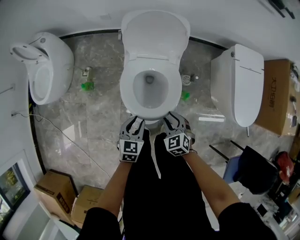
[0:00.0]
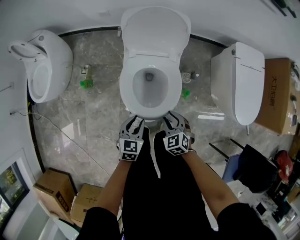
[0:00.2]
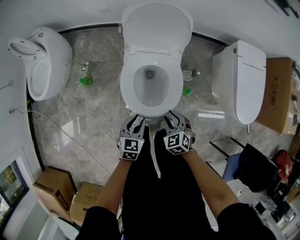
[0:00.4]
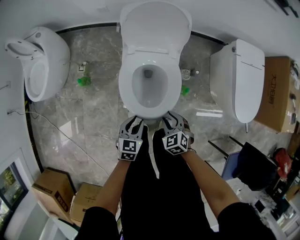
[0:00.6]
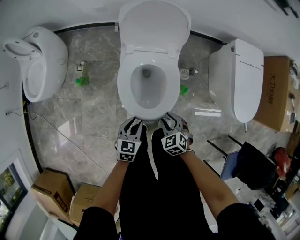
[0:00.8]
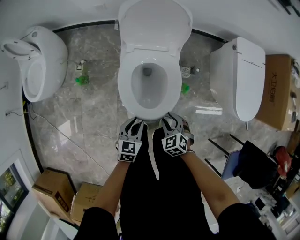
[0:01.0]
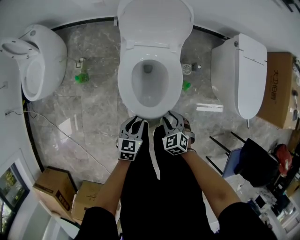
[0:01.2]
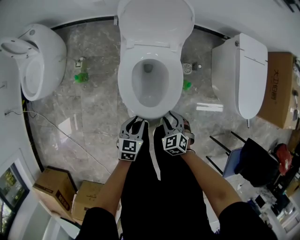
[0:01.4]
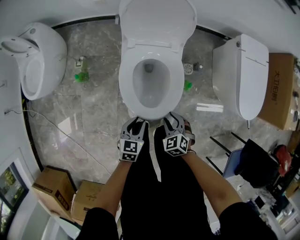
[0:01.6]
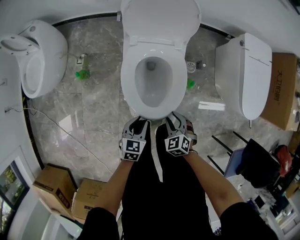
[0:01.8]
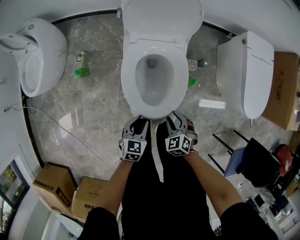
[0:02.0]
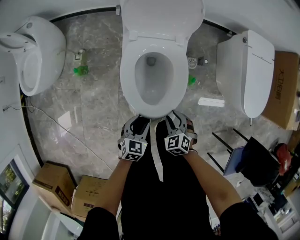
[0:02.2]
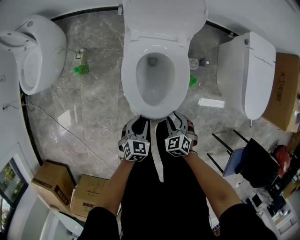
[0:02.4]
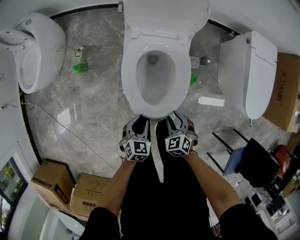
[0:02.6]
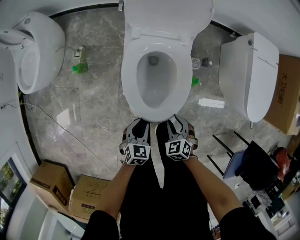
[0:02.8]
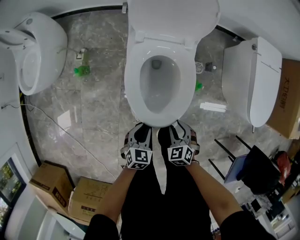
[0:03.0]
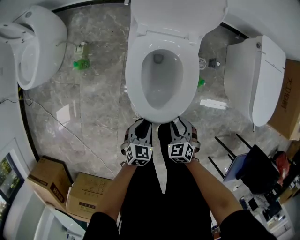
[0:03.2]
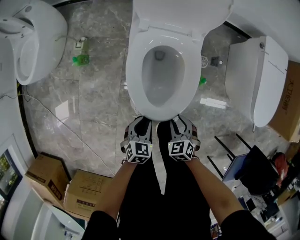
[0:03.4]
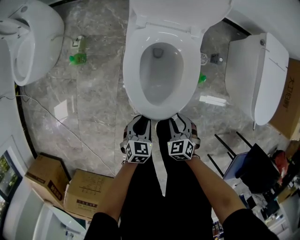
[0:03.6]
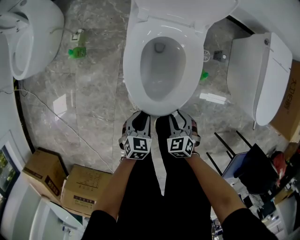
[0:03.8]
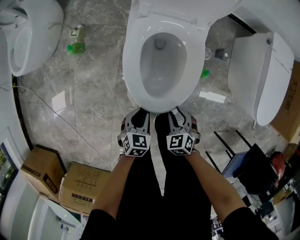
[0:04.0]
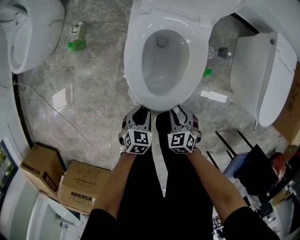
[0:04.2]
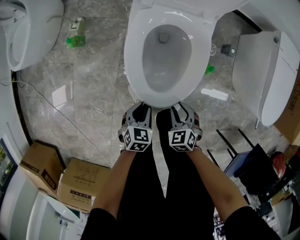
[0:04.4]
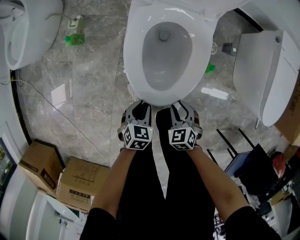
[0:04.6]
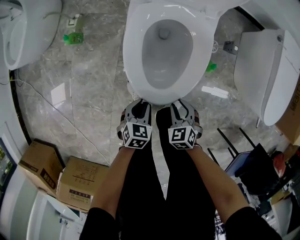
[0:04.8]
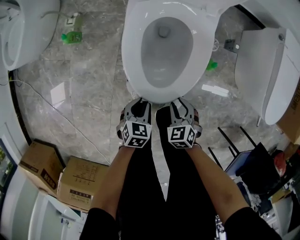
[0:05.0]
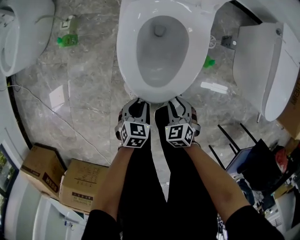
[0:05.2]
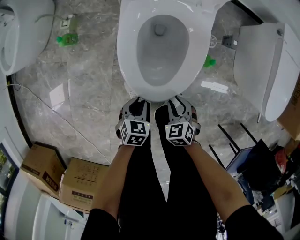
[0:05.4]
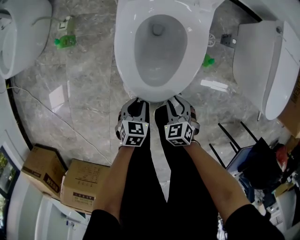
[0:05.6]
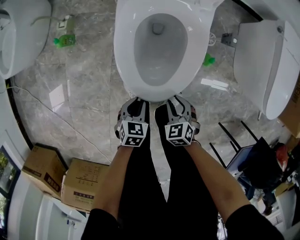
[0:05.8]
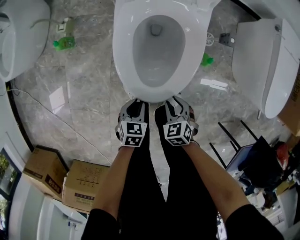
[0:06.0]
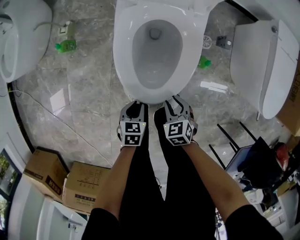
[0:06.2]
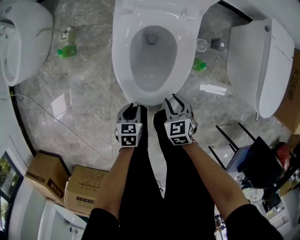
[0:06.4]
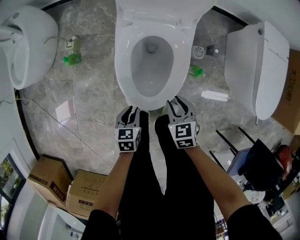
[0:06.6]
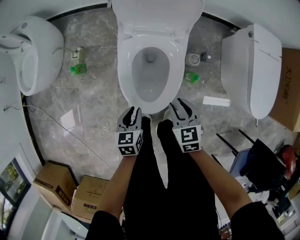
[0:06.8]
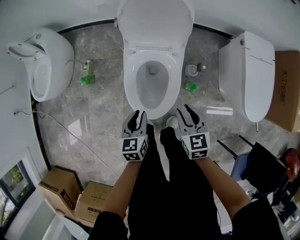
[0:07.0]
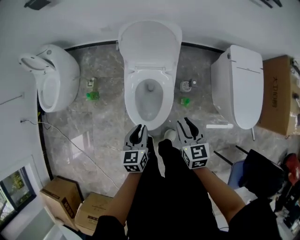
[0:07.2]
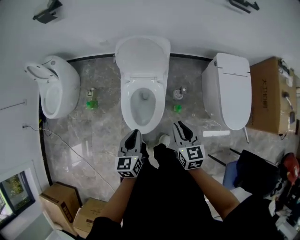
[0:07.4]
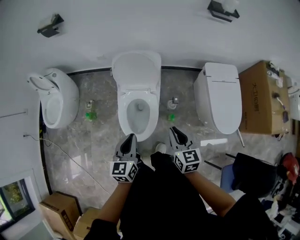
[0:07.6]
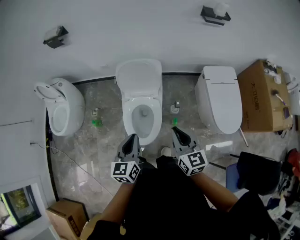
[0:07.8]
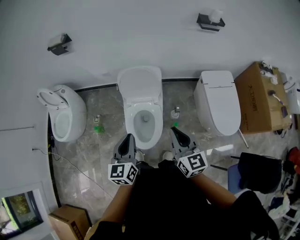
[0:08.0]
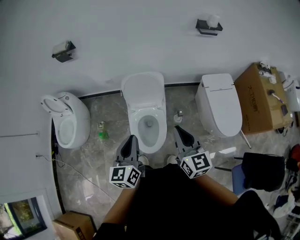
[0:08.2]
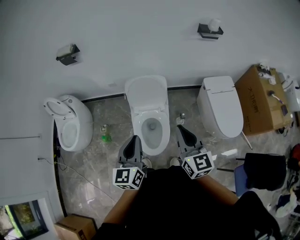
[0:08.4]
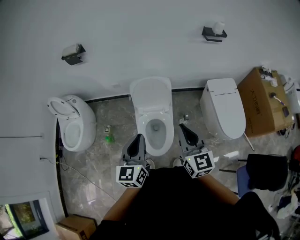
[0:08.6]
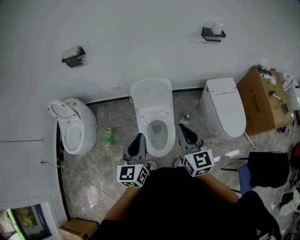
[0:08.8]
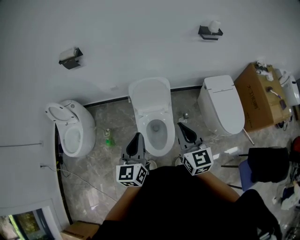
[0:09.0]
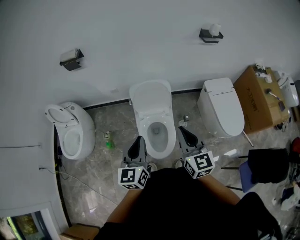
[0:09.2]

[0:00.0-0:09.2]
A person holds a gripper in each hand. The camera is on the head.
0:00.0 to 0:01.6: The two grippers go some 10 cm downward and backward.
0:01.6 to 0:03.0: The grippers both shift downward by roughly 5 cm.
0:03.0 to 0:04.6: The grippers both shift downward by roughly 10 cm.
0:04.6 to 0:06.2: The grippers make only small movements.
0:06.2 to 0:07.6: Both grippers move upward, about 50 cm. The left gripper angles its fingers upward, by approximately 40 degrees. The right gripper tilts its fingers roughly 30 degrees upward.
0:07.6 to 0:09.2: The two grippers go about 25 cm upward and to the left. The right gripper changes its angle by approximately 20 degrees.

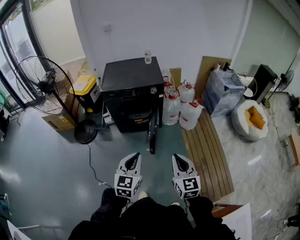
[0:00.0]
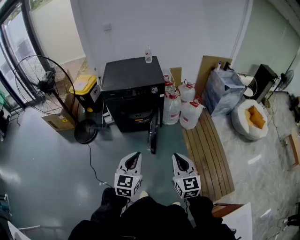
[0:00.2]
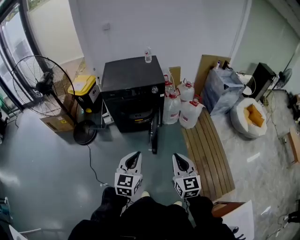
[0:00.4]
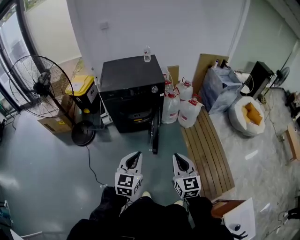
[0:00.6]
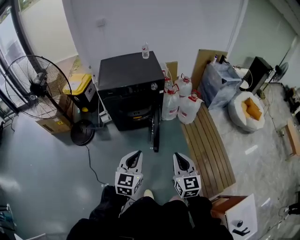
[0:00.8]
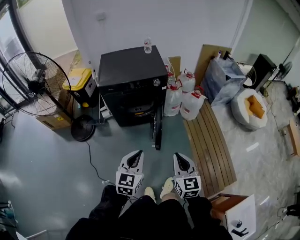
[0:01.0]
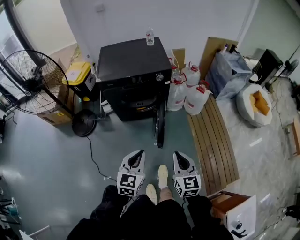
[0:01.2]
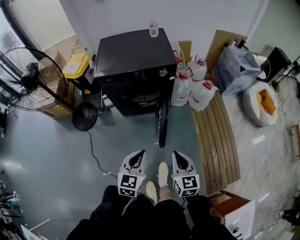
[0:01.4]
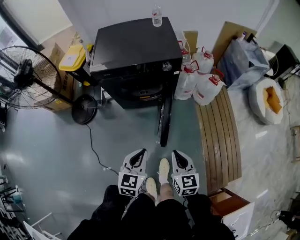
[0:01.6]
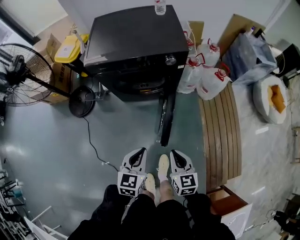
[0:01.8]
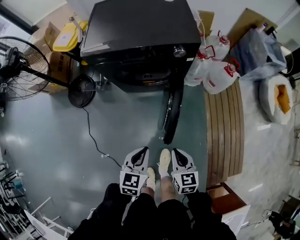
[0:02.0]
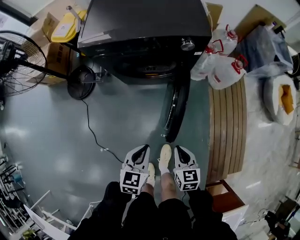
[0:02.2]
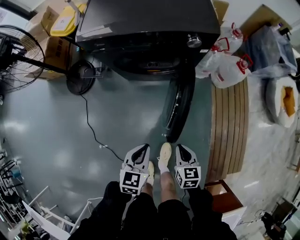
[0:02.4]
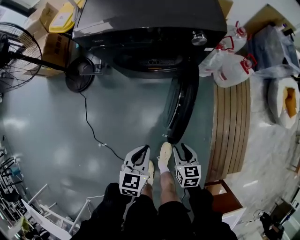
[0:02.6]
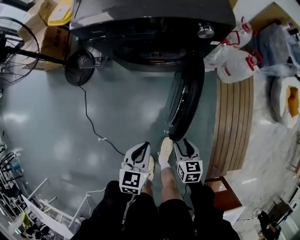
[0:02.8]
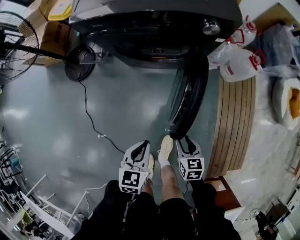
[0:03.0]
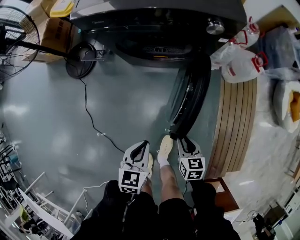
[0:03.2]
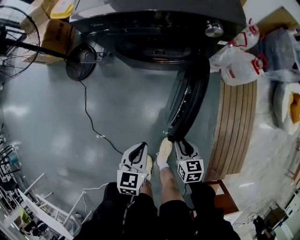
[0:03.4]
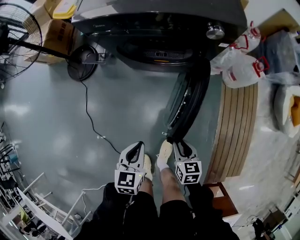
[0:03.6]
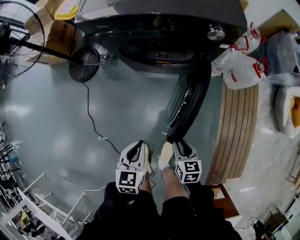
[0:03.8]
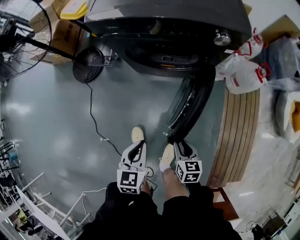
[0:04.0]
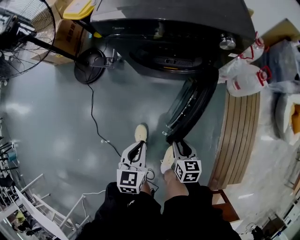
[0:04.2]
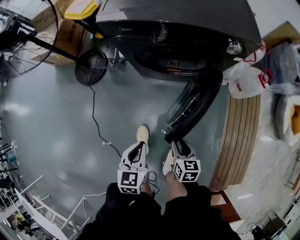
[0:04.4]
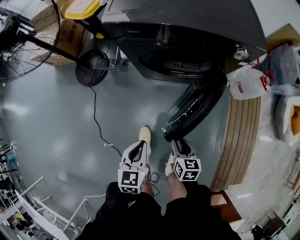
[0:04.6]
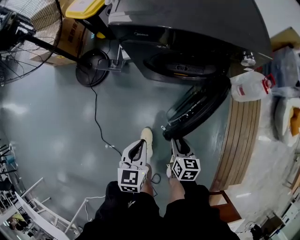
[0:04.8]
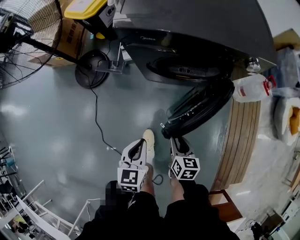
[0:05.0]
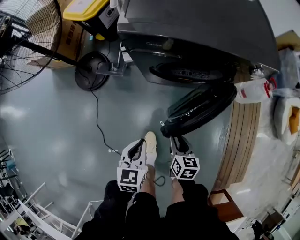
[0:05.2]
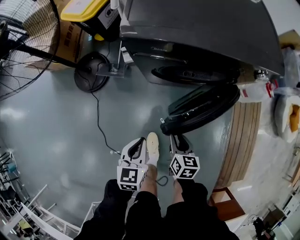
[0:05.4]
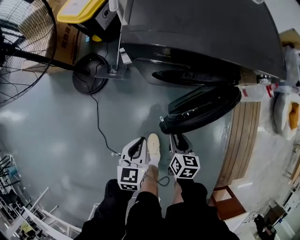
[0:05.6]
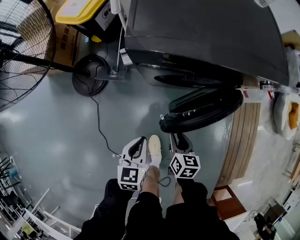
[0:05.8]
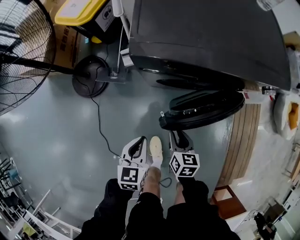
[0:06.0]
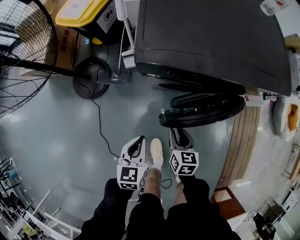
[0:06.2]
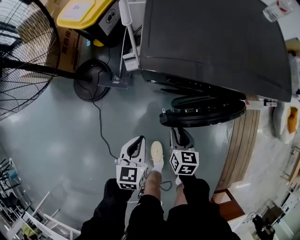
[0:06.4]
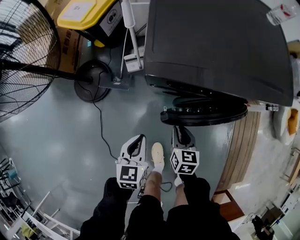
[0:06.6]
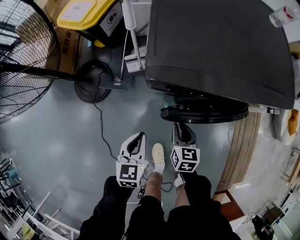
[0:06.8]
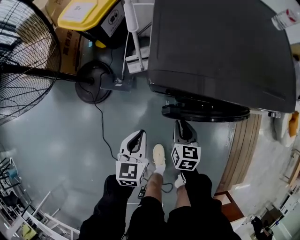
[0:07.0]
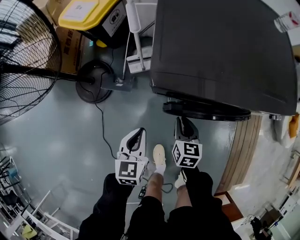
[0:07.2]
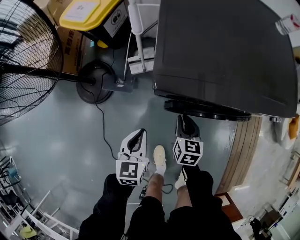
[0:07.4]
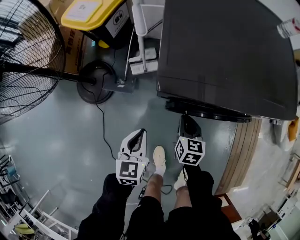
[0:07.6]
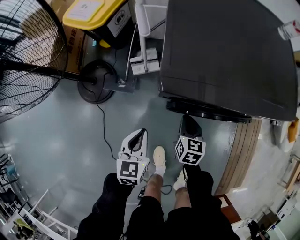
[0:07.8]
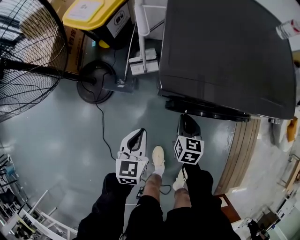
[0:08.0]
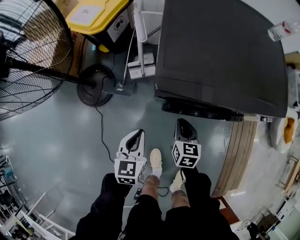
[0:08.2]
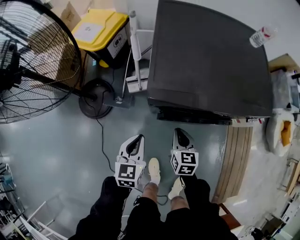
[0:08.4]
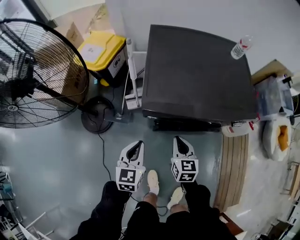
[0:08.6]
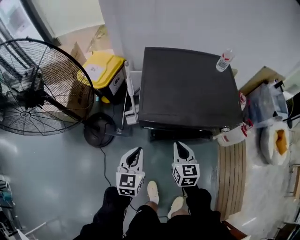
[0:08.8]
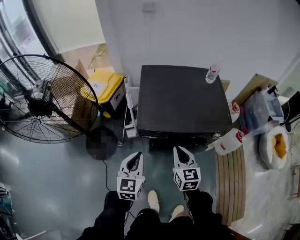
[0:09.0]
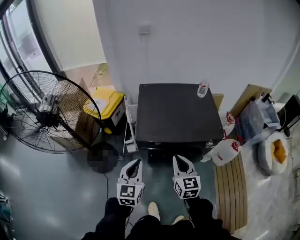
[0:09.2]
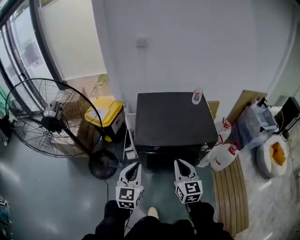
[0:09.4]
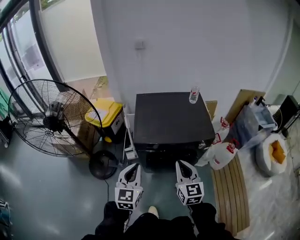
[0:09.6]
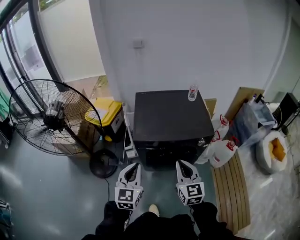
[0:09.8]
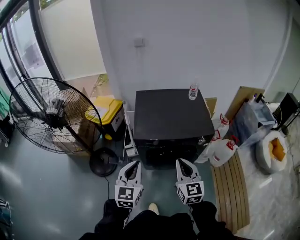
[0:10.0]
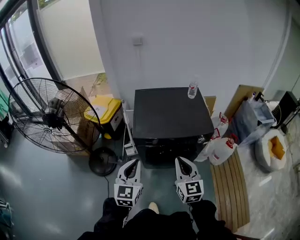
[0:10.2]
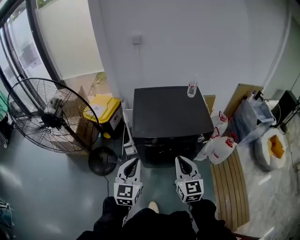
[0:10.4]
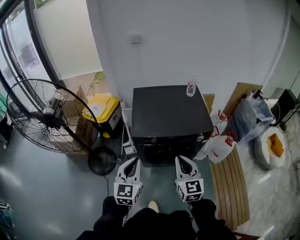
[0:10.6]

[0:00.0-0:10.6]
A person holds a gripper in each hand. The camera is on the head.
0:00.0 to 0:01.6: The left gripper moves forward and downward, some 30 cm; the right gripper heads forward, downward and to the left, covering about 30 cm.
0:01.6 to 0:03.0: The two grippers go roughly 30 cm downward. The right gripper turns by approximately 30 degrees, and opens up.
0:03.0 to 0:04.6: Both grippers travel together to the left and forward, approximately 15 cm.
0:04.6 to 0:06.0: Both grippers travel together forward and to the left, approximately 25 cm.
0:06.0 to 0:07.6: The right gripper heads forward, covering approximately 15 cm, and closes its fingers. The left gripper moves forward and to the left, about 15 cm.
0:07.6 to 0:09.0: The grippers both shift upward by about 40 cm. The left gripper swivels approximately 20 degrees. The right gripper changes its angle by about 30 degrees.
0:09.0 to 0:10.6: The left gripper moves upward and backward, approximately 15 cm. The right gripper goes roughly 20 cm upward, backward and to the right.

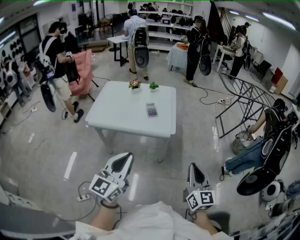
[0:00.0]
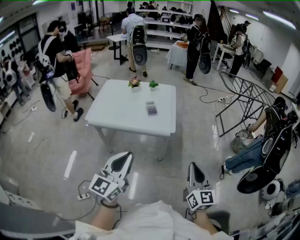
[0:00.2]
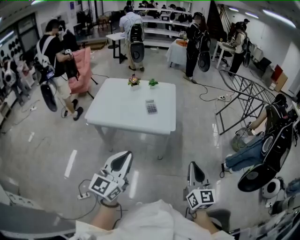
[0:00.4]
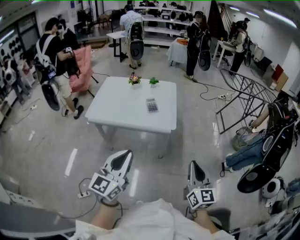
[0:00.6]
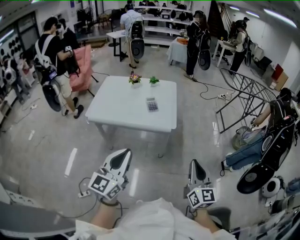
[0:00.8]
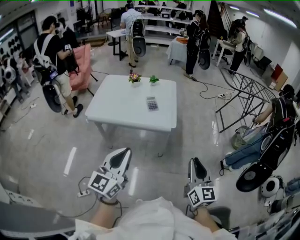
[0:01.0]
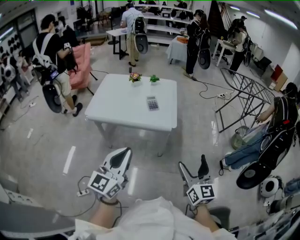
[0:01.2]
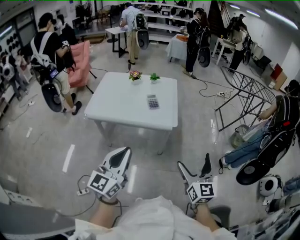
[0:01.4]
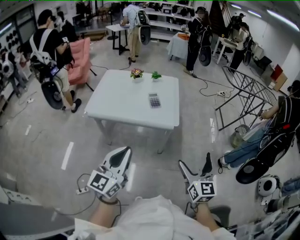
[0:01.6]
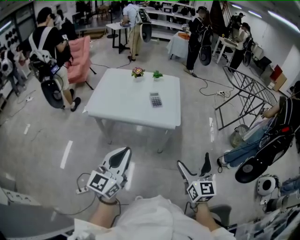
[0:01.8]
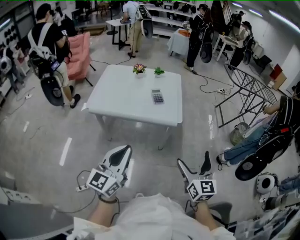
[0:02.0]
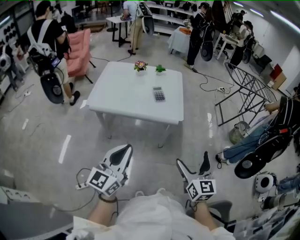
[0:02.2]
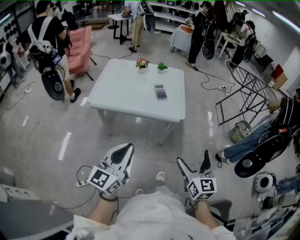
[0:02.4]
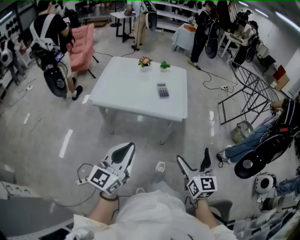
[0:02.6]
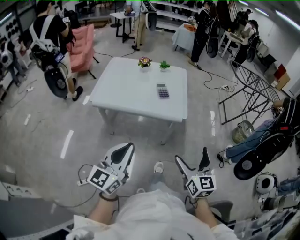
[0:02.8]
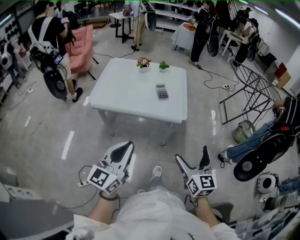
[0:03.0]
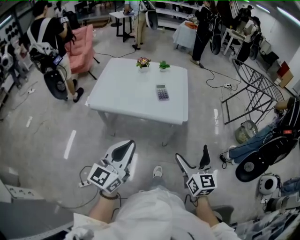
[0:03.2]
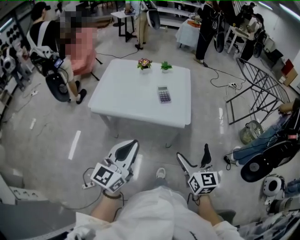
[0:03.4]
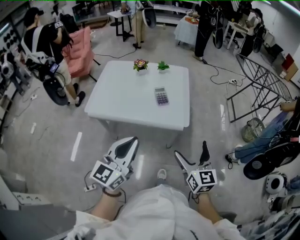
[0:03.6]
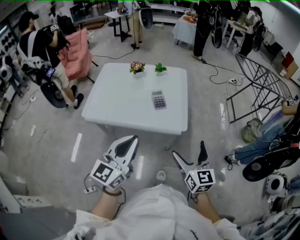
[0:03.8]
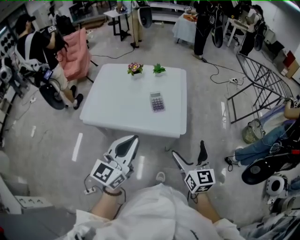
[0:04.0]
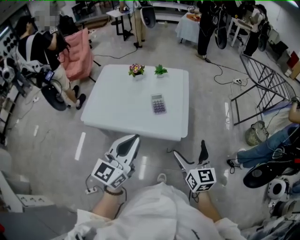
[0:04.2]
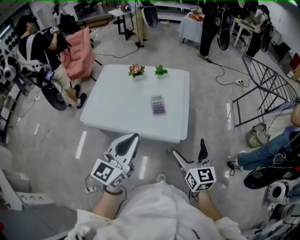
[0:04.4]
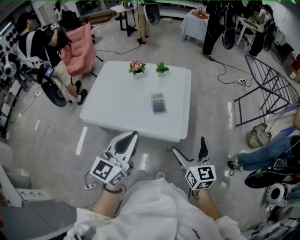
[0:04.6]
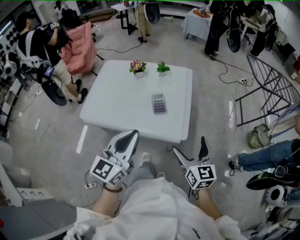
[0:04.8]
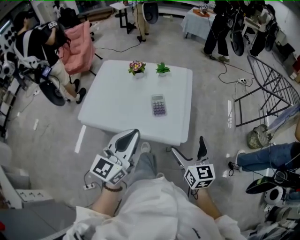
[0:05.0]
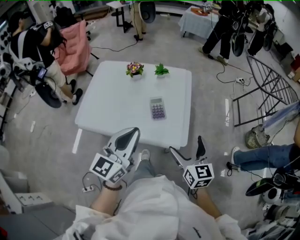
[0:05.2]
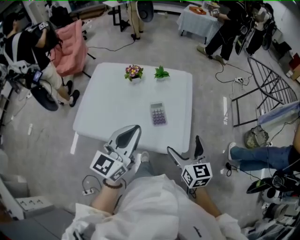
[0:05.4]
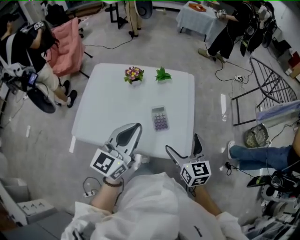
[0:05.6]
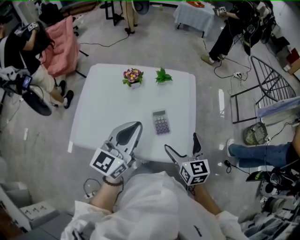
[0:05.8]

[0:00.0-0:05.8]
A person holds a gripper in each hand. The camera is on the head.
0:00.0 to 0:01.4: The right gripper opens up.
0:01.4 to 0:02.8: The grippers both shift to the left by roughly 5 cm.
0:02.8 to 0:04.4: The grippers both shift forward by roughly 25 cm.
0:04.4 to 0:05.8: The right gripper shifts some 25 cm forward and to the left, while the left gripper heads forward, covering about 25 cm.
